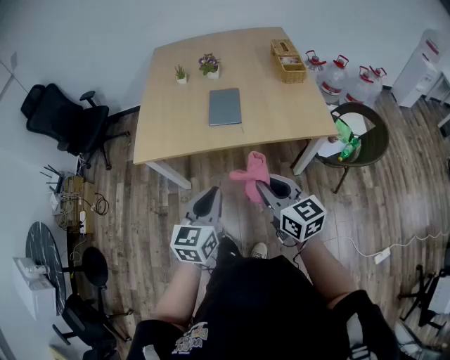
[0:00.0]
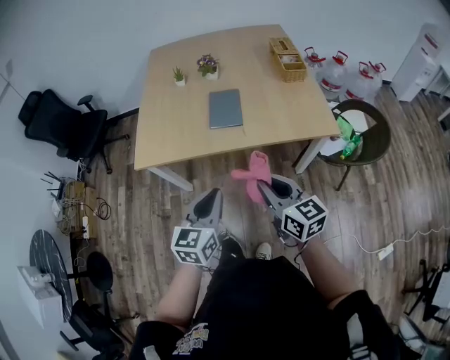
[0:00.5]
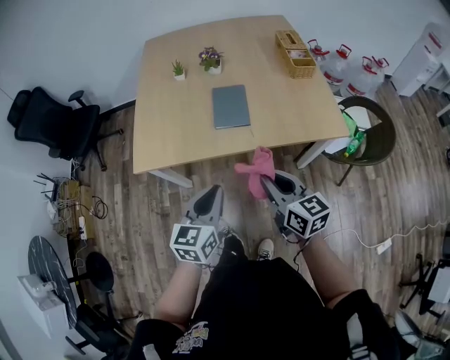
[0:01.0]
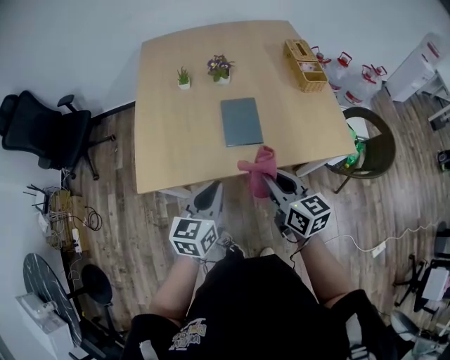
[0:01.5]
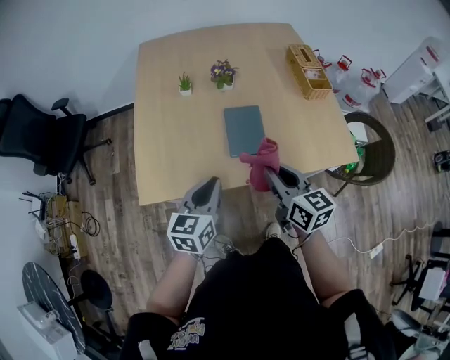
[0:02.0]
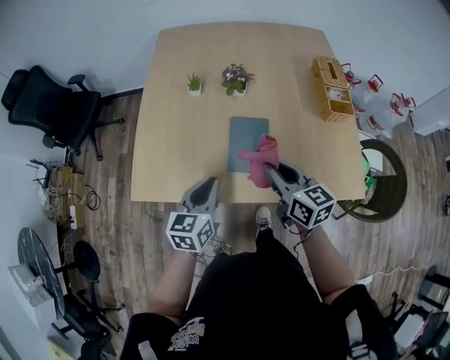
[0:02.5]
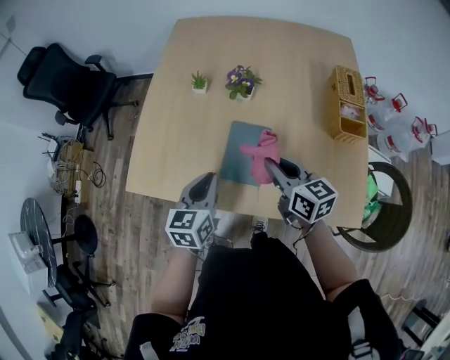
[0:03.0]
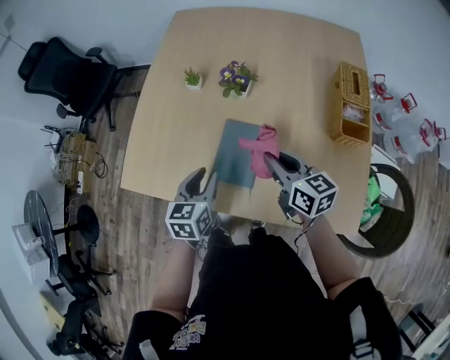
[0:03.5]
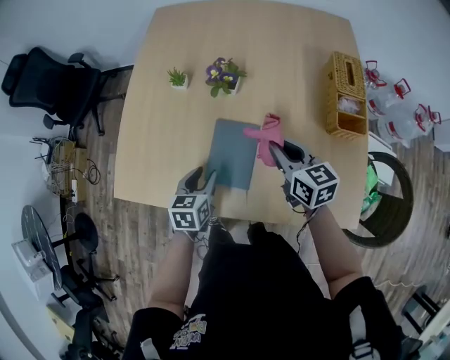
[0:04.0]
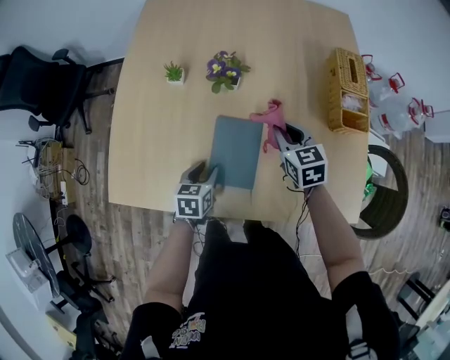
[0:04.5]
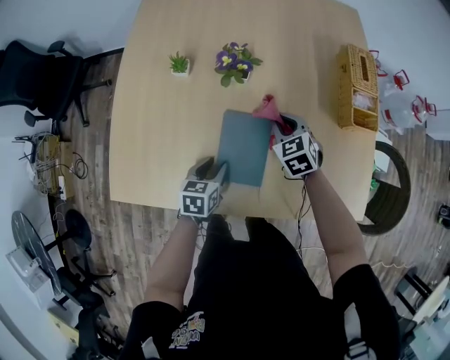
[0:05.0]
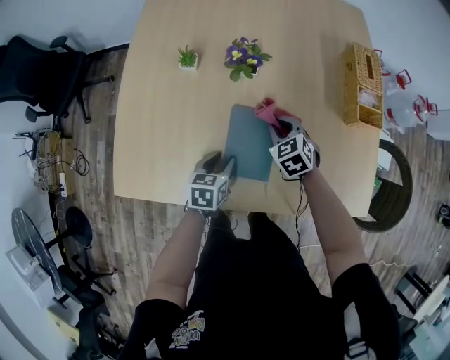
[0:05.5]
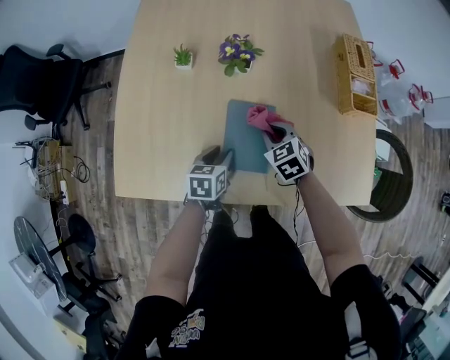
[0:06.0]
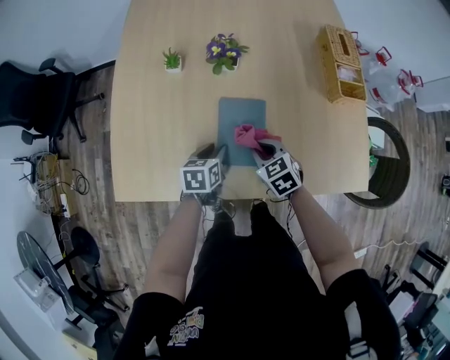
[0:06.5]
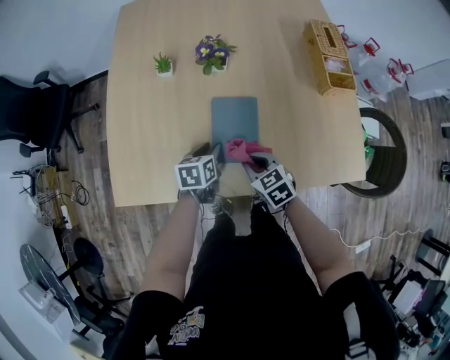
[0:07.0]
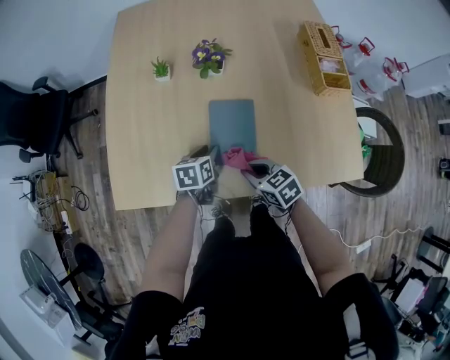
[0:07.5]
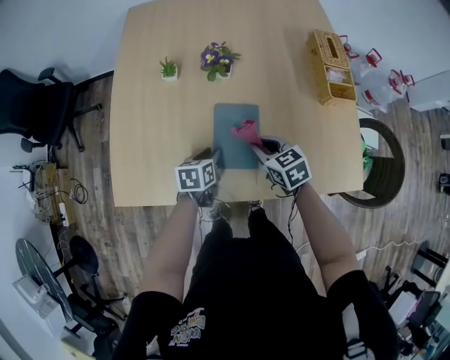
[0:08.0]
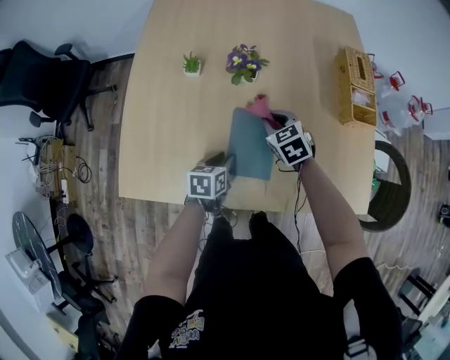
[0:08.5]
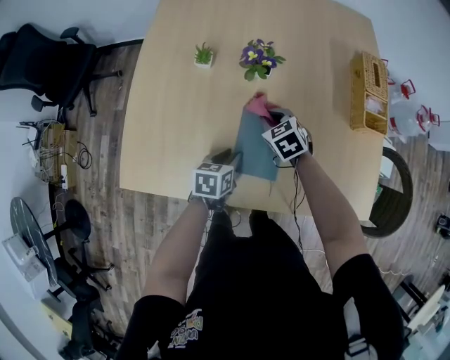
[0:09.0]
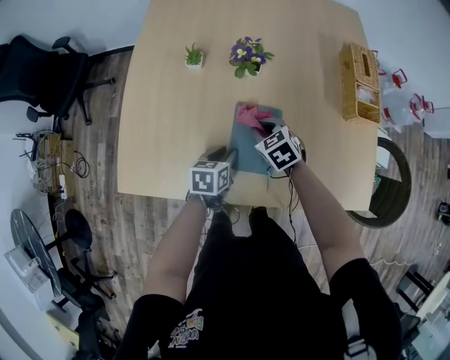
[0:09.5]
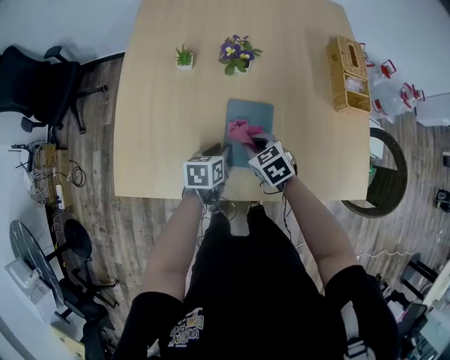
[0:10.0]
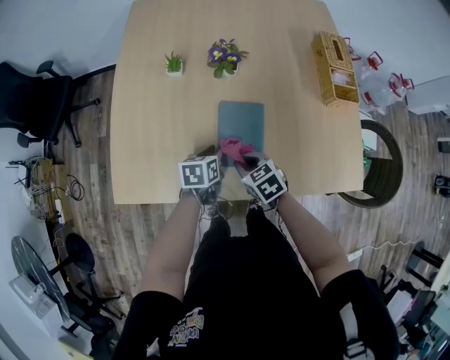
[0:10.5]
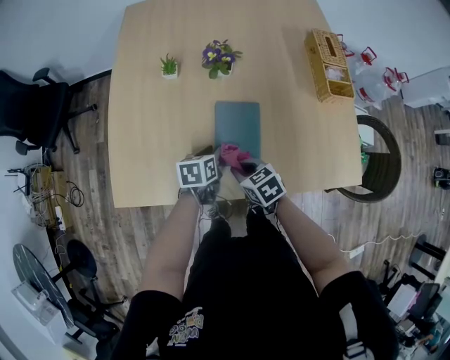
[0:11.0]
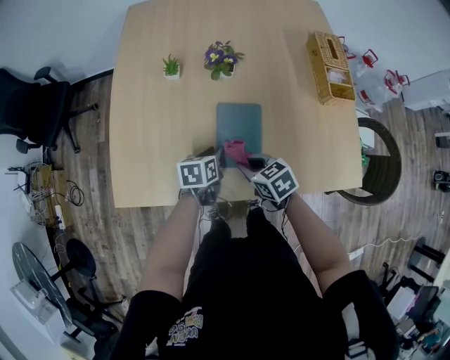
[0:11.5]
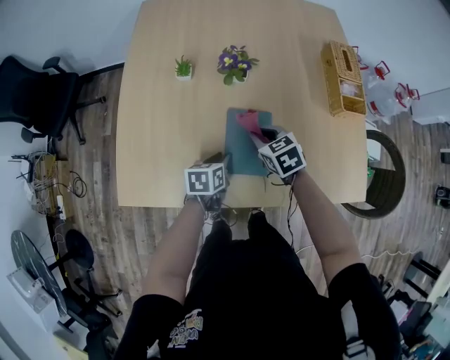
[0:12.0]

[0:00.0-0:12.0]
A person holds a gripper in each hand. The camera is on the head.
0:00.0 to 0:02.0: The left gripper travels forward and to the left by about 30 cm. The right gripper travels forward by approximately 25 cm.
0:02.0 to 0:04.0: The left gripper changes place by roughly 25 cm, rotates about 30 degrees, and opens up. The right gripper changes place by roughly 30 cm, and rotates roughly 20 degrees.
0:04.0 to 0:06.0: The left gripper goes some 5 cm downward. The right gripper is displaced downward and to the left by approximately 15 cm, and swivels about 40 degrees.
0:06.0 to 0:08.0: The right gripper shifts approximately 5 cm backward.
0:08.0 to 0:10.0: The right gripper heads to the left, covering some 5 cm, and moves about 10 cm forward and comes back.
0:10.0 to 0:12.0: The right gripper changes place by some 5 cm.

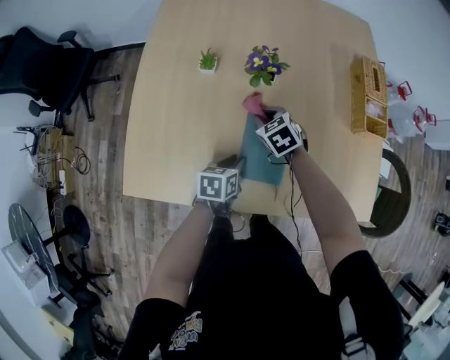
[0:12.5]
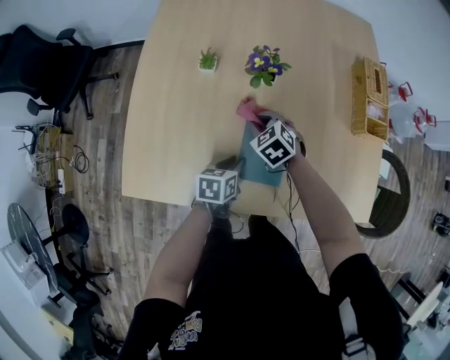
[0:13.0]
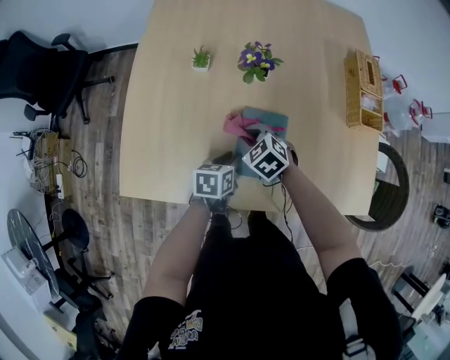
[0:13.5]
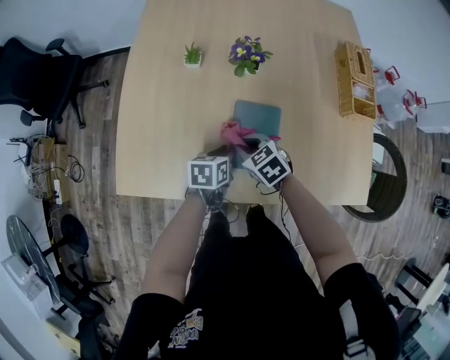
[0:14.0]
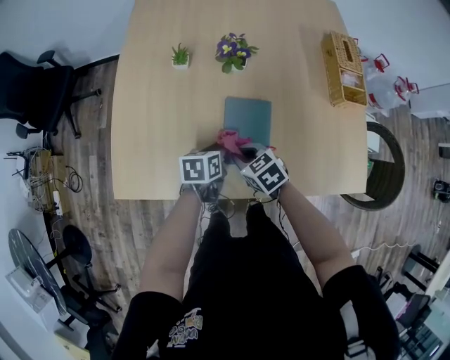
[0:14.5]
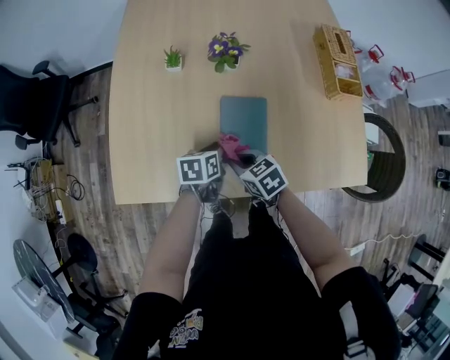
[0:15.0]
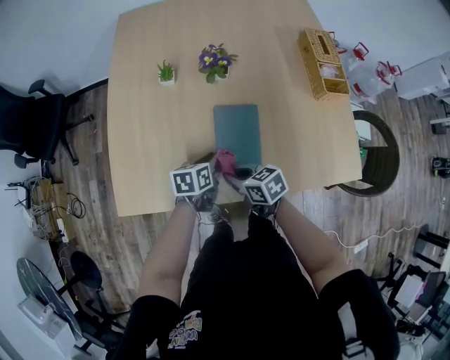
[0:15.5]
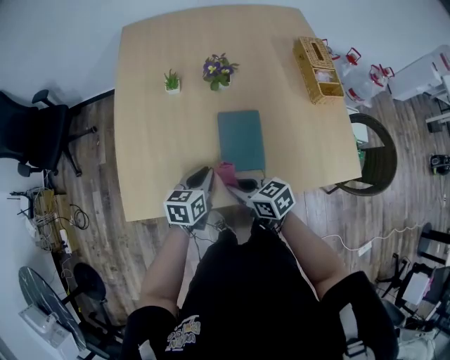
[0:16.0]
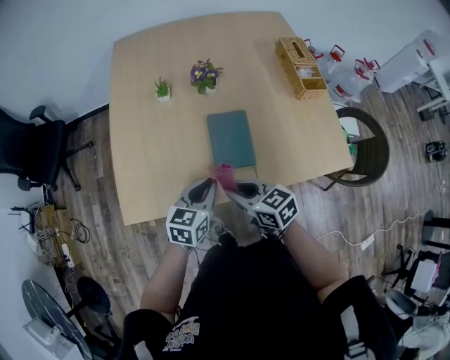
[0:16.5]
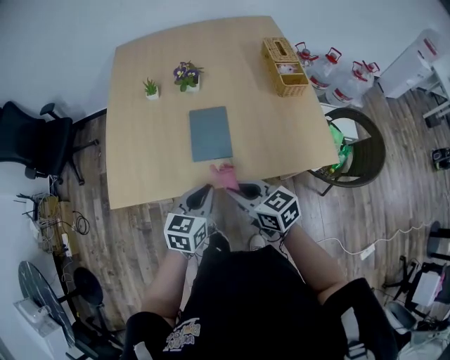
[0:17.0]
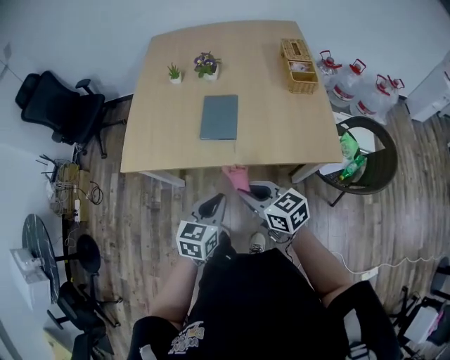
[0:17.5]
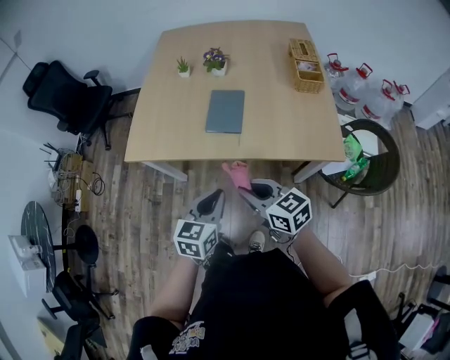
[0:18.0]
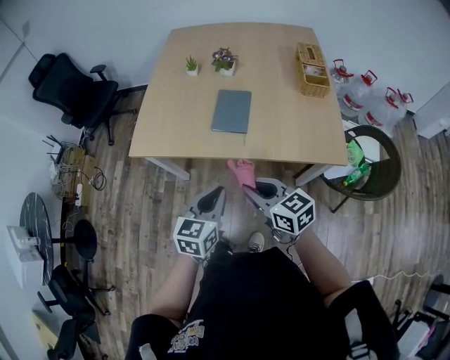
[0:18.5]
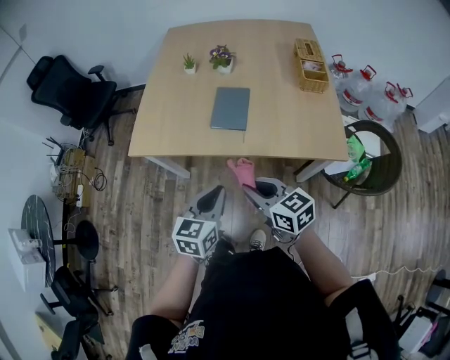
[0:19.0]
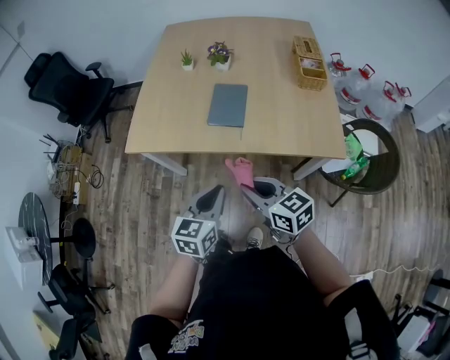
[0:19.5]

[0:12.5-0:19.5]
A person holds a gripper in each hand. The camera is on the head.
0:12.5 to 0:14.5: The right gripper travels backward by some 15 cm.
0:14.5 to 0:16.0: The left gripper moves upward and to the left, roughly 10 cm, while the right gripper shifts some 10 cm backward and upward, and turns by roughly 30 degrees.
0:16.0 to 0:17.5: The right gripper goes approximately 30 cm backward, to the right and upward, while the left gripper heads backward and to the right, covering some 30 cm.
0:17.5 to 0:19.5: The grippers stay close to where they were, moving slightly.

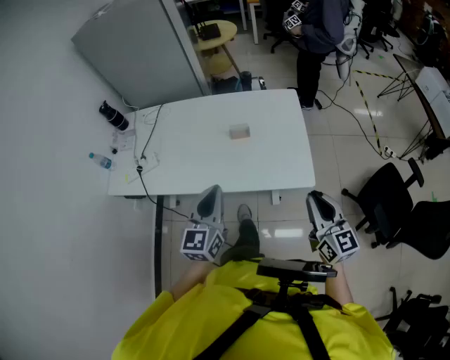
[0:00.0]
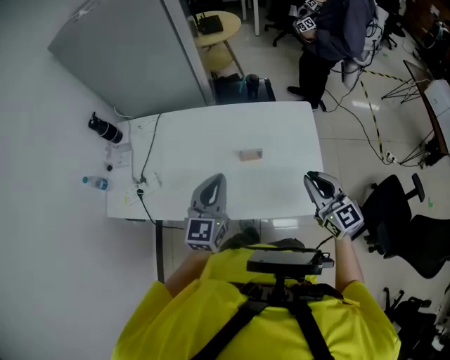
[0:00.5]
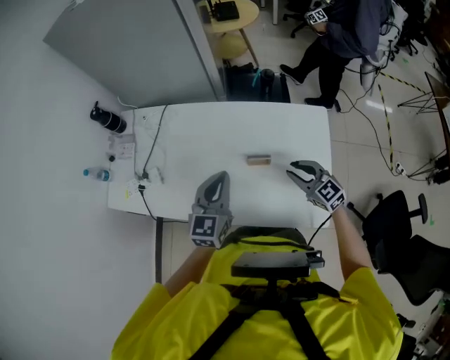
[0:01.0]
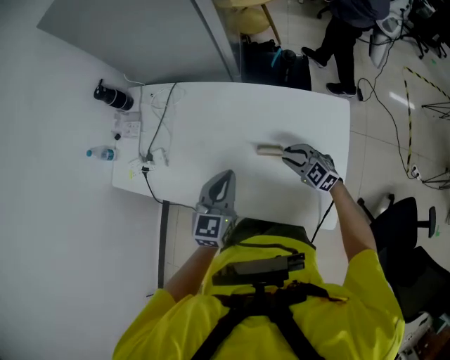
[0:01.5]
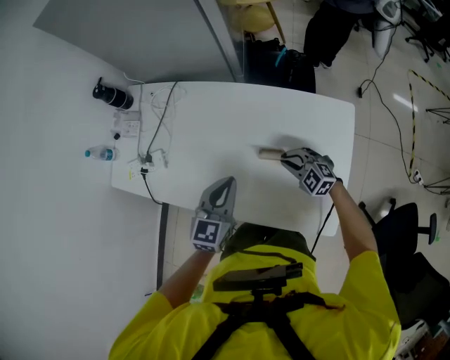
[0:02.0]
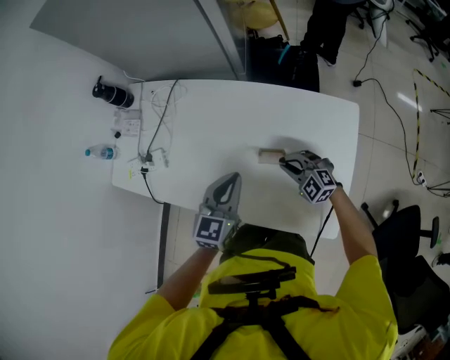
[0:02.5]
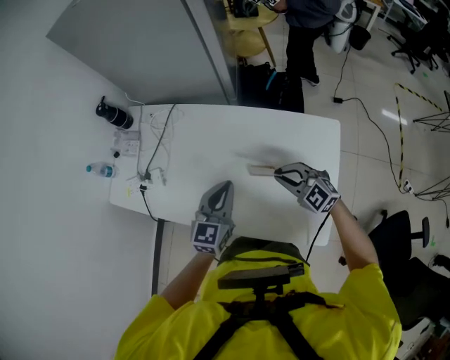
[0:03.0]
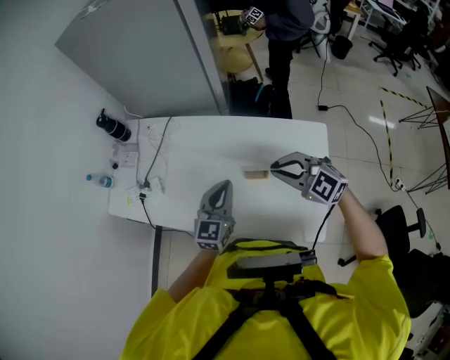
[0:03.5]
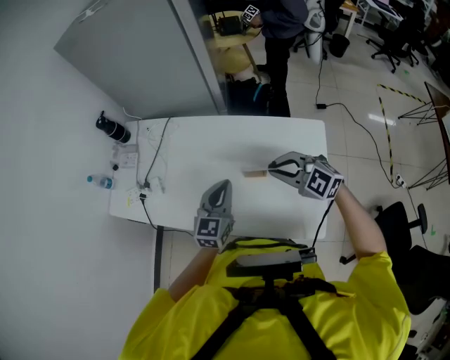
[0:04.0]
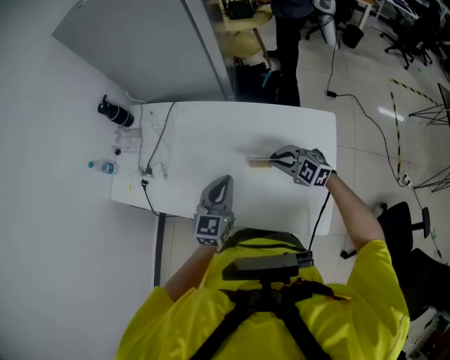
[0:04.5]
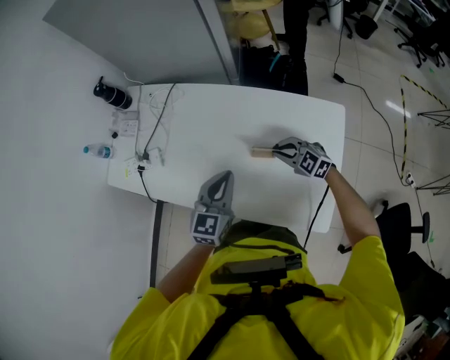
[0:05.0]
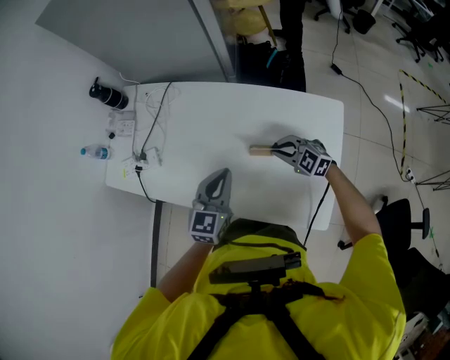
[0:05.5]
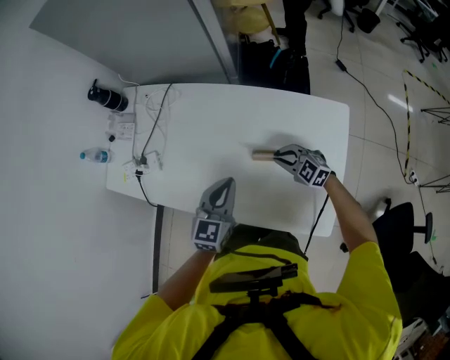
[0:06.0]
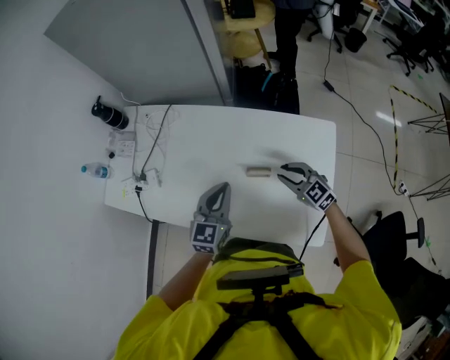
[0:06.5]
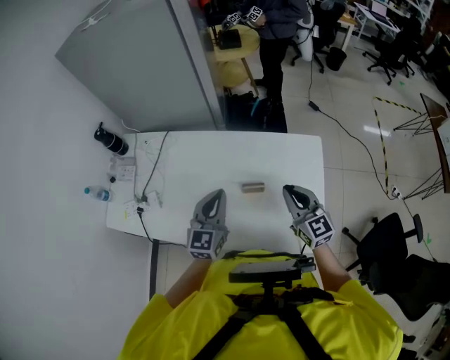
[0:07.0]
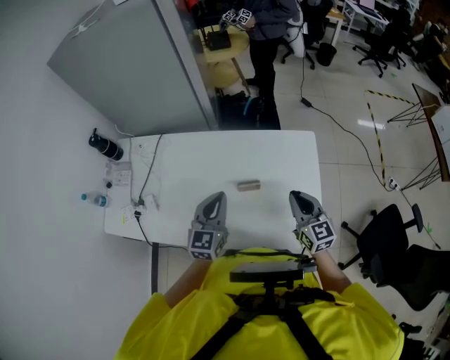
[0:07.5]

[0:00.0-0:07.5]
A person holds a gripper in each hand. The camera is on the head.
0:00.0 to 0:02.0: The left gripper changes place by roughly 30 cm, while the right gripper shifts by approximately 50 cm, and angles its fingers downward, by some 30 degrees.
0:02.0 to 0:04.0: The right gripper travels upward by roughly 20 cm.
0:04.0 to 0:05.5: The right gripper travels downward by approximately 20 cm.
0:05.5 to 0:07.5: The right gripper travels upward by approximately 15 cm, changes its angle by roughly 60 degrees, and opens, then closes once more.
